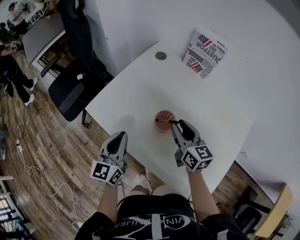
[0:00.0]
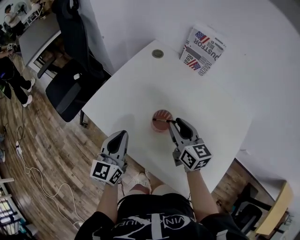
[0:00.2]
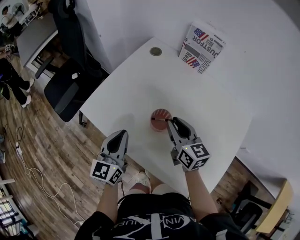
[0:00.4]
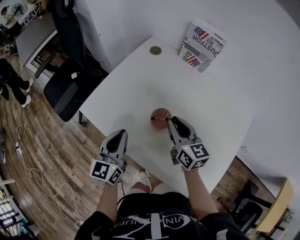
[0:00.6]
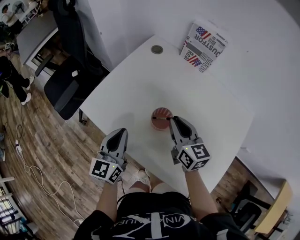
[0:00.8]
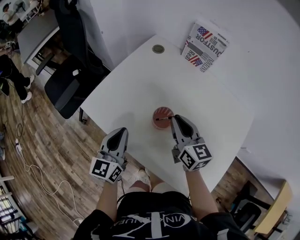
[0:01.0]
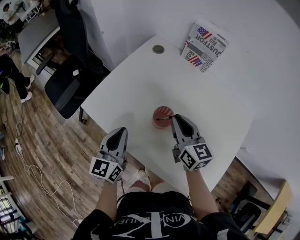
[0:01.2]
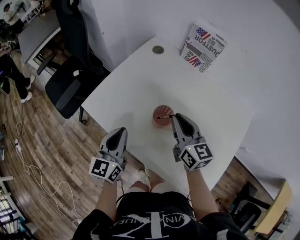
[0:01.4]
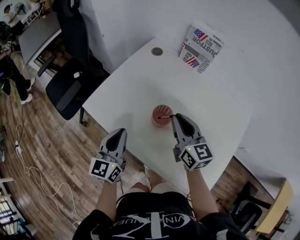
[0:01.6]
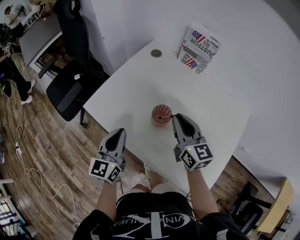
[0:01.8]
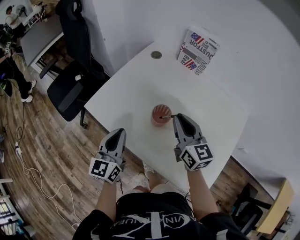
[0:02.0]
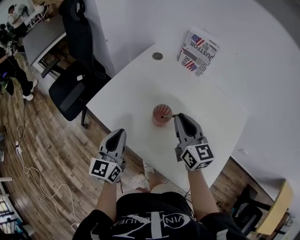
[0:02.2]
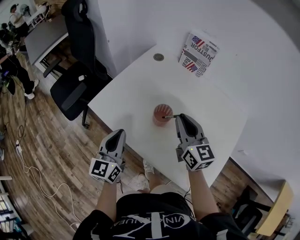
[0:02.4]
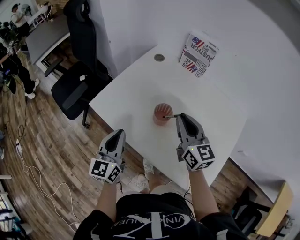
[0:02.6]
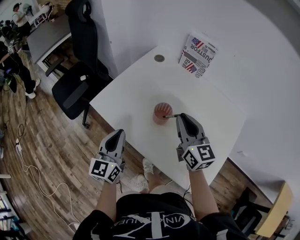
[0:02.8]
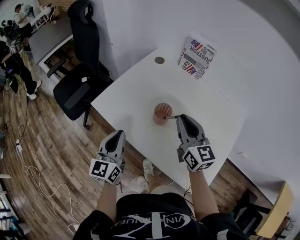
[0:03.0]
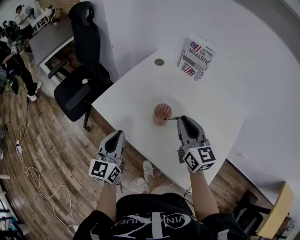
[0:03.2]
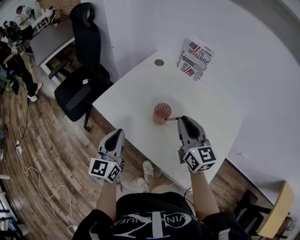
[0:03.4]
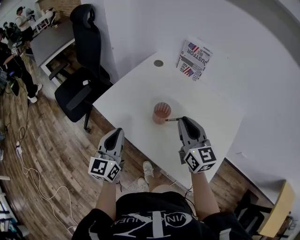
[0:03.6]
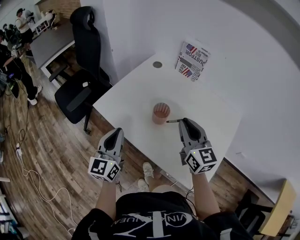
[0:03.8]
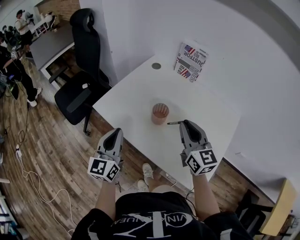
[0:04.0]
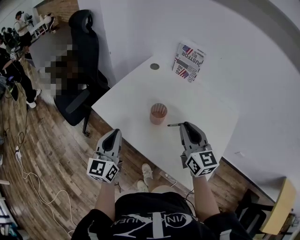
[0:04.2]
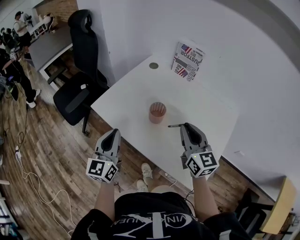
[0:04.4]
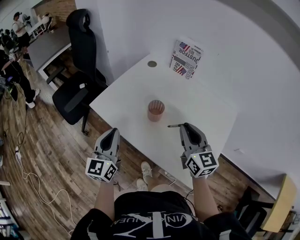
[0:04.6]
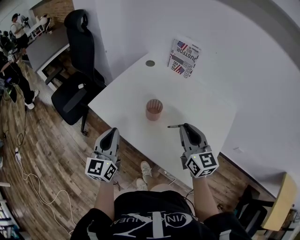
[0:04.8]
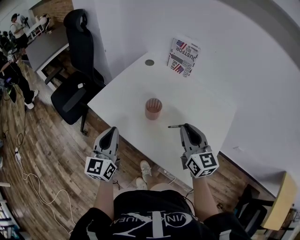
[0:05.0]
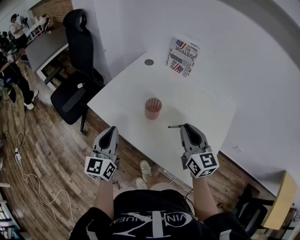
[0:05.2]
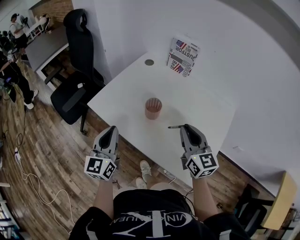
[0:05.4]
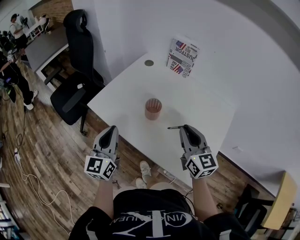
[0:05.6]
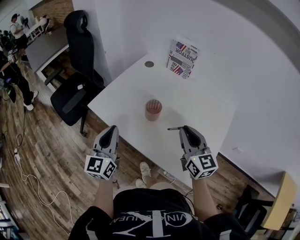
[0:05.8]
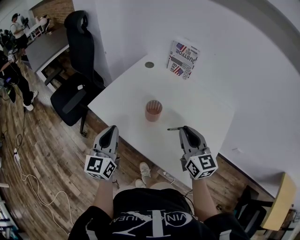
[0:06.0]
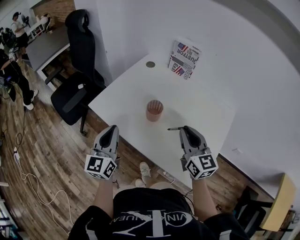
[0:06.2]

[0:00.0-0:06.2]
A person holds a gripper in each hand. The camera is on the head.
0:00.0 to 0:01.6: The right gripper closes.
0:01.6 to 0:03.2: The left gripper is displaced backward by roughly 5 cm. Meanwhile the right gripper travels upward and backward by some 10 cm.
0:03.2 to 0:04.6: The right gripper travels backward by about 5 cm.
0:04.6 to 0:06.2: The grippers make only small movements.

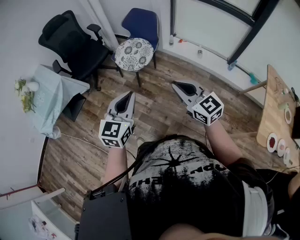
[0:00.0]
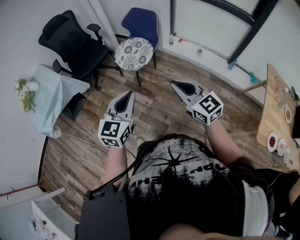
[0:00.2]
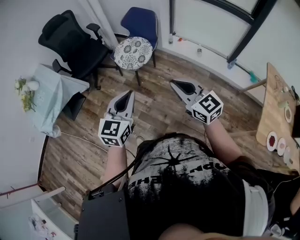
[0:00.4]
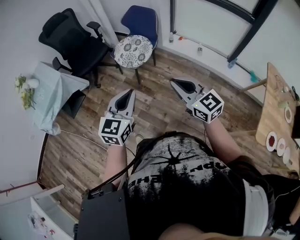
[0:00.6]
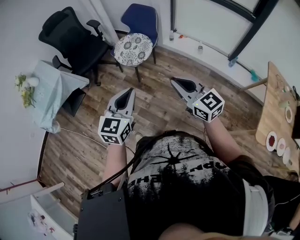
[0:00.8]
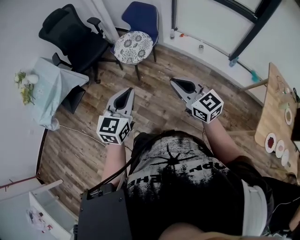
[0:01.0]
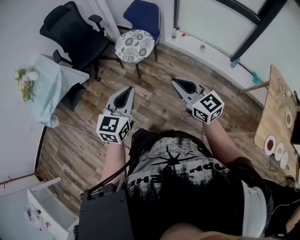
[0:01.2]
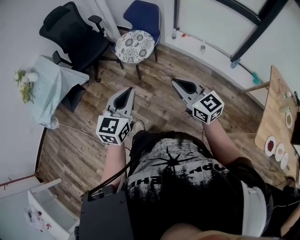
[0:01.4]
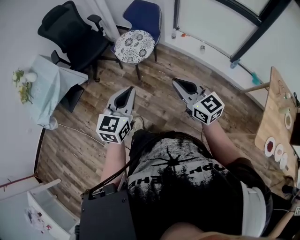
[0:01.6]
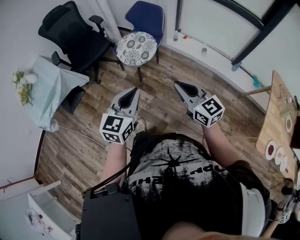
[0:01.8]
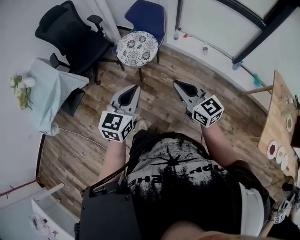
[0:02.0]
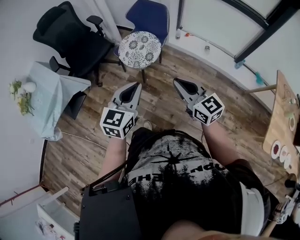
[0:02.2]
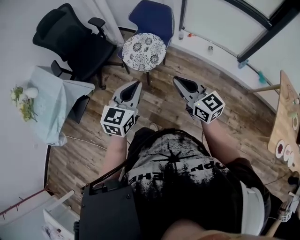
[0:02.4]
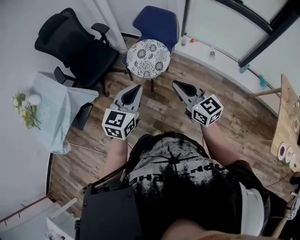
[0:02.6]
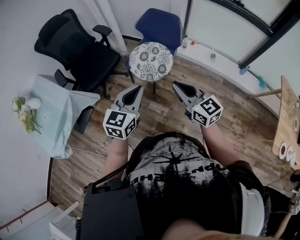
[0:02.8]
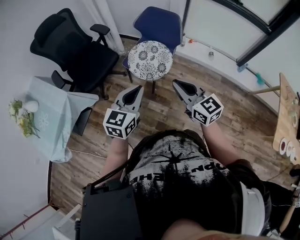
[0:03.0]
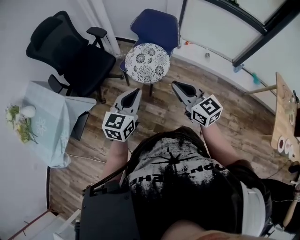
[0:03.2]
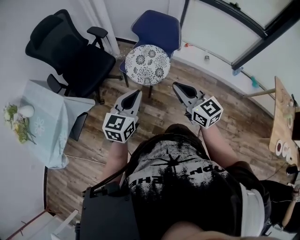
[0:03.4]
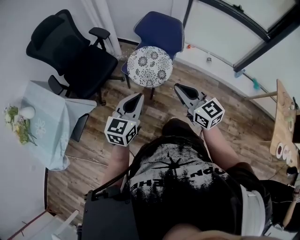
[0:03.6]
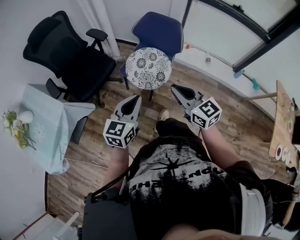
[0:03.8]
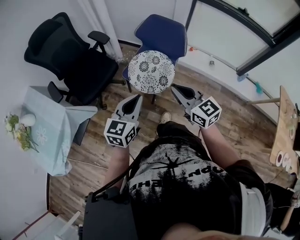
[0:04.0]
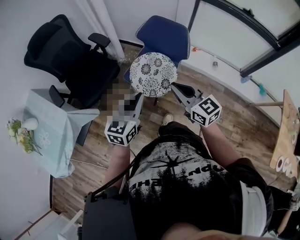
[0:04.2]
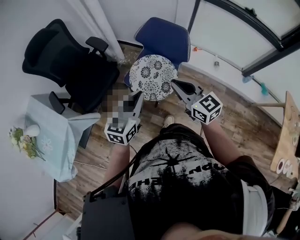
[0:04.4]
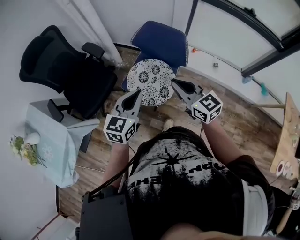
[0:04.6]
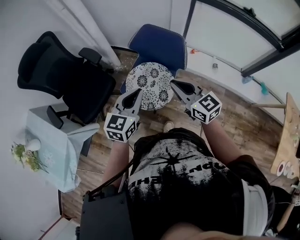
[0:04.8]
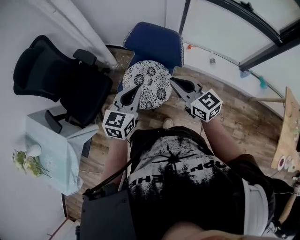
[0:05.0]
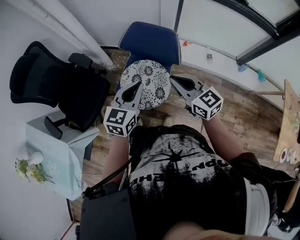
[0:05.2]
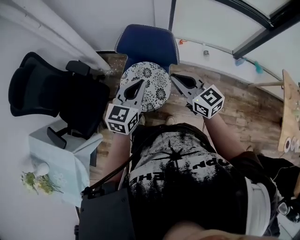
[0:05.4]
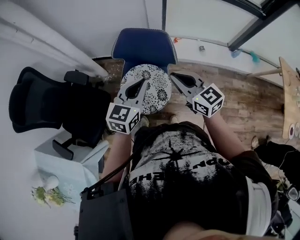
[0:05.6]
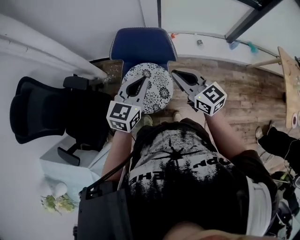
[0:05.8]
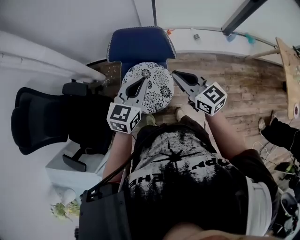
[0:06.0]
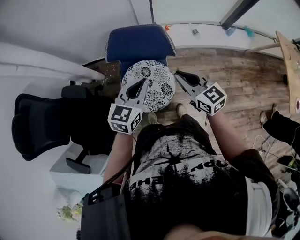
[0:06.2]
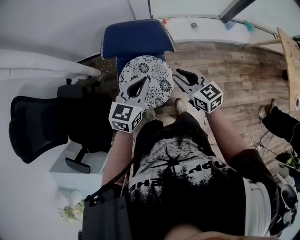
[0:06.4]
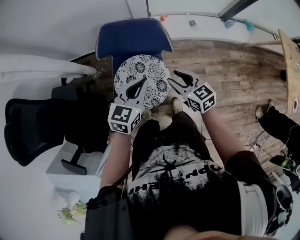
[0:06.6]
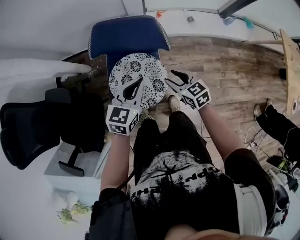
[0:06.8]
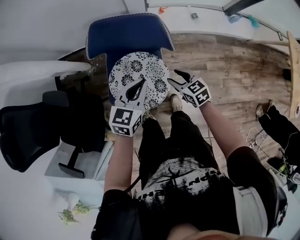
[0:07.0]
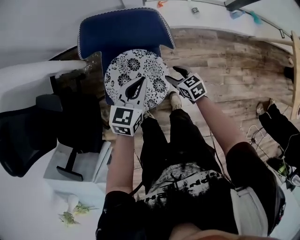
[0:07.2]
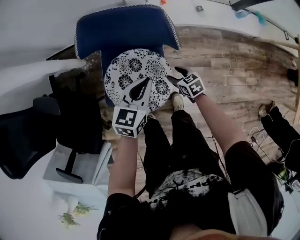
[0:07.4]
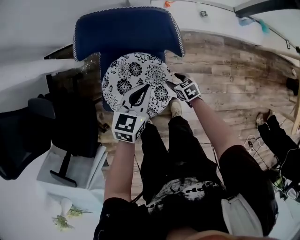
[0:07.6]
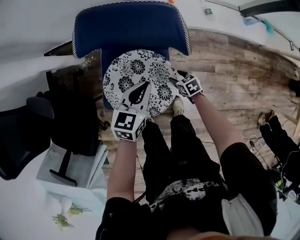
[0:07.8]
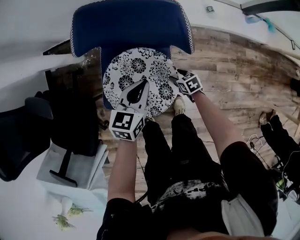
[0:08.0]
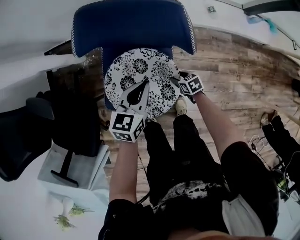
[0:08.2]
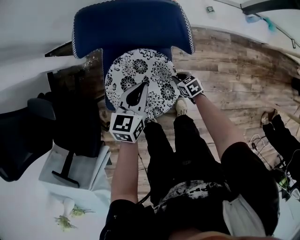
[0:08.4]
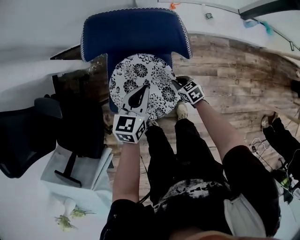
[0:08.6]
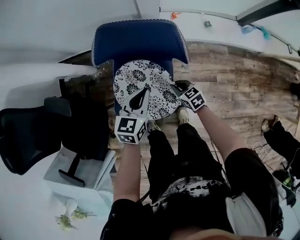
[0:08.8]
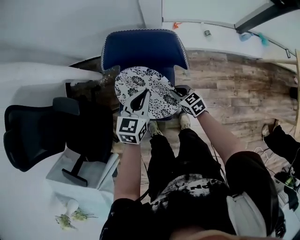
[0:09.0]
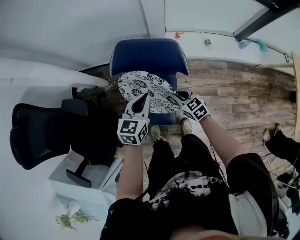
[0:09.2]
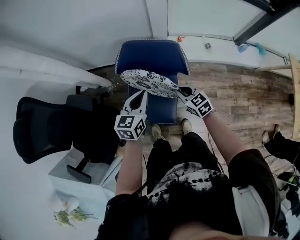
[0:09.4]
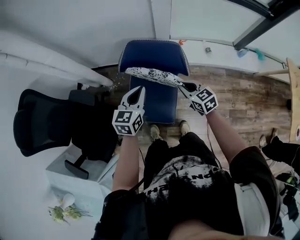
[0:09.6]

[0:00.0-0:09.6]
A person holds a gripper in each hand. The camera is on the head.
0:00.0 to 0:01.6: The grippers stay close to where they were, moving slightly.
0:01.6 to 0:03.2: The left gripper moves forward and to the left, roughly 30 cm. Meanwhile the right gripper moves to the left and forward, some 30 cm.
0:03.2 to 0:04.8: Both grippers move forward, some 25 cm.
0:04.8 to 0:06.4: The left gripper ends up about 15 cm from where it was, and swivels some 30 degrees, while the right gripper moves downward, some 10 cm, and swivels approximately 30 degrees.
0:06.4 to 0:08.0: The right gripper travels downward by some 50 cm, angles its fingers downward, by approximately 40 degrees, and opens up. Meanwhile the left gripper is displaced downward by approximately 25 cm.
0:08.0 to 0:09.6: The left gripper goes about 20 cm upward; the right gripper is displaced upward by some 40 cm, changes its angle by approximately 40 degrees, and closes its fingers.

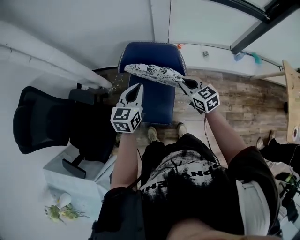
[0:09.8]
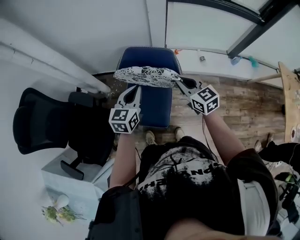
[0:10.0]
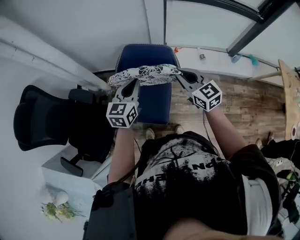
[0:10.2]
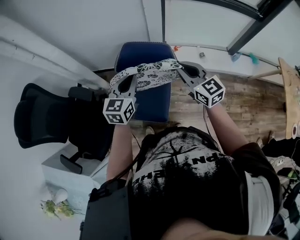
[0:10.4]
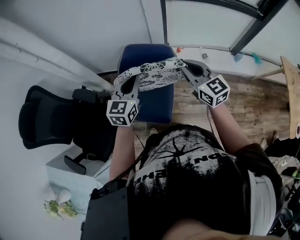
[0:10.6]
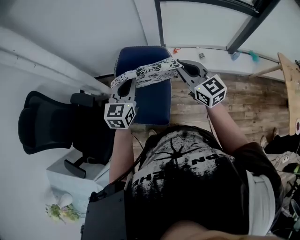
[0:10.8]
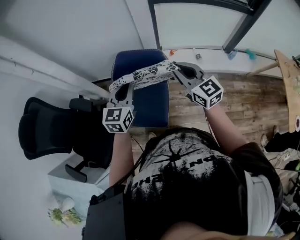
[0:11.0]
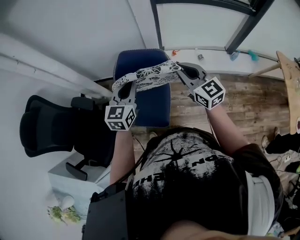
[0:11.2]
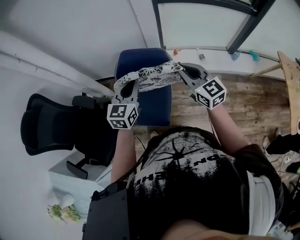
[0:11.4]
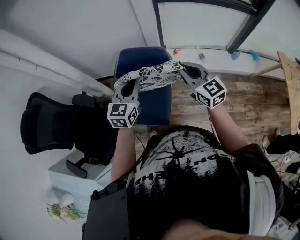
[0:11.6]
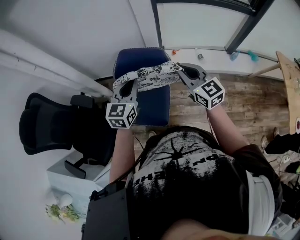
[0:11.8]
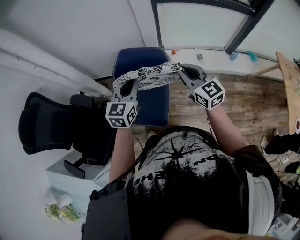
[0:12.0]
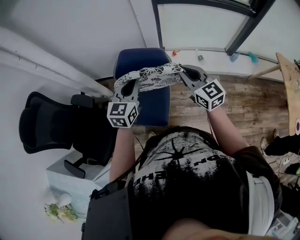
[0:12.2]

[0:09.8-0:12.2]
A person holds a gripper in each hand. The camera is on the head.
0:09.8 to 0:11.0: The right gripper is displaced upward by about 15 cm, and swivels about 20 degrees, while the left gripper heads upward, covering roughly 5 cm.
0:11.0 to 0:12.2: The grippers stay close to where they were, moving slightly.

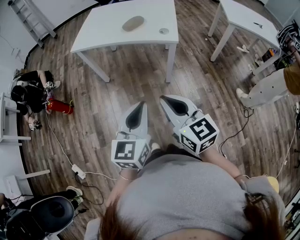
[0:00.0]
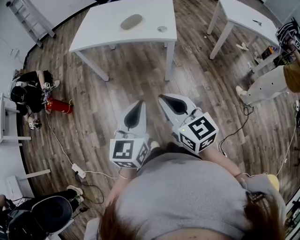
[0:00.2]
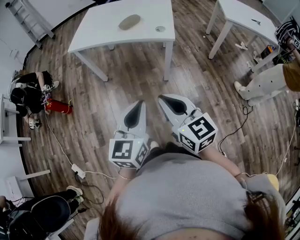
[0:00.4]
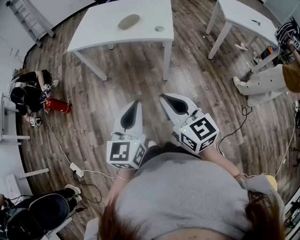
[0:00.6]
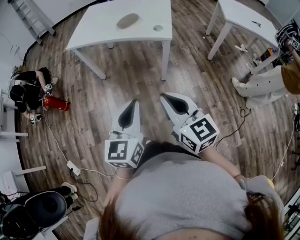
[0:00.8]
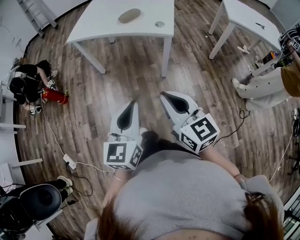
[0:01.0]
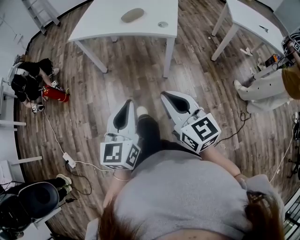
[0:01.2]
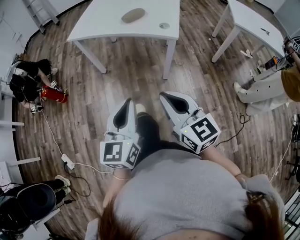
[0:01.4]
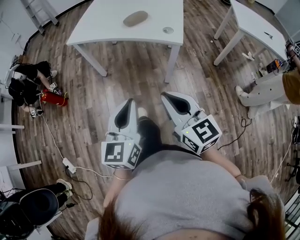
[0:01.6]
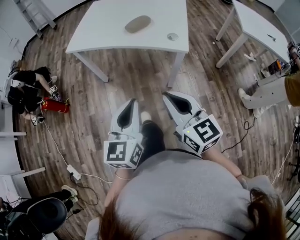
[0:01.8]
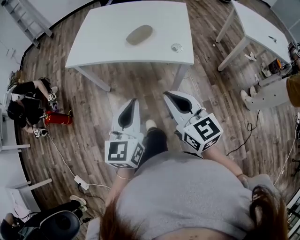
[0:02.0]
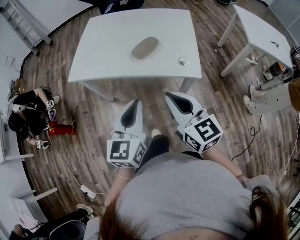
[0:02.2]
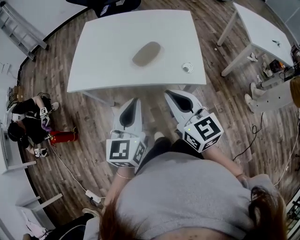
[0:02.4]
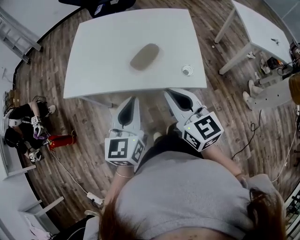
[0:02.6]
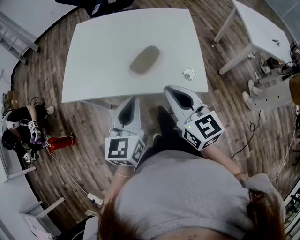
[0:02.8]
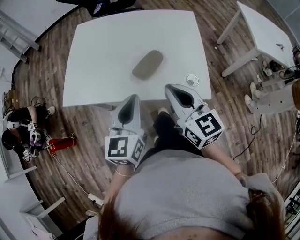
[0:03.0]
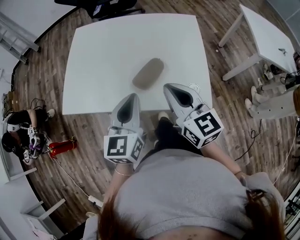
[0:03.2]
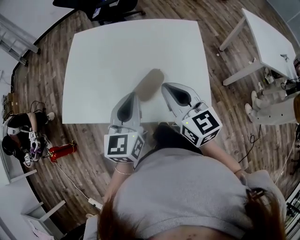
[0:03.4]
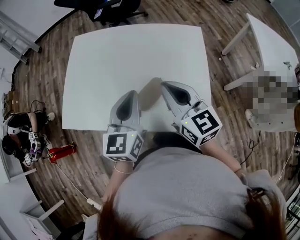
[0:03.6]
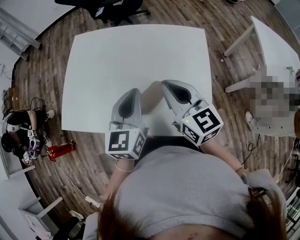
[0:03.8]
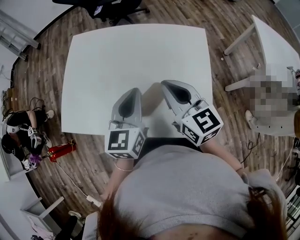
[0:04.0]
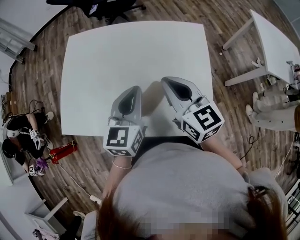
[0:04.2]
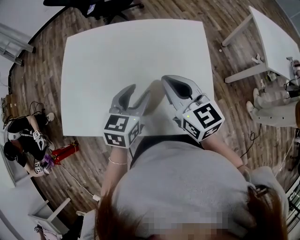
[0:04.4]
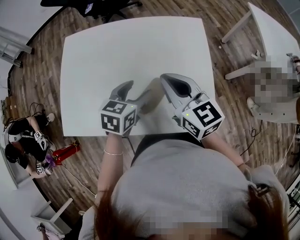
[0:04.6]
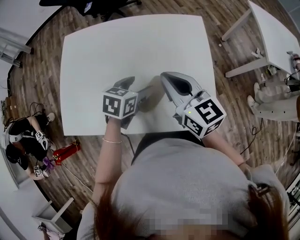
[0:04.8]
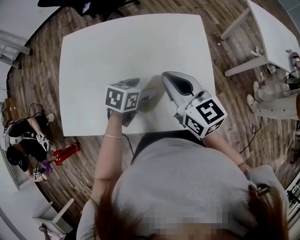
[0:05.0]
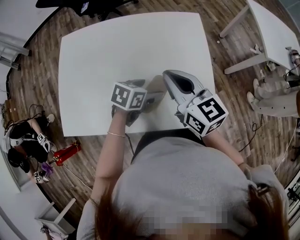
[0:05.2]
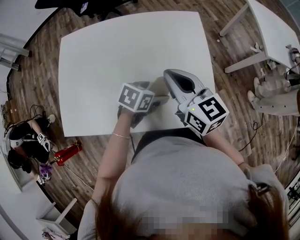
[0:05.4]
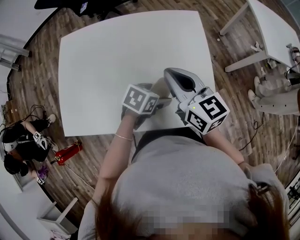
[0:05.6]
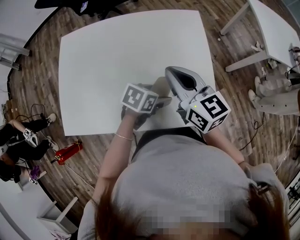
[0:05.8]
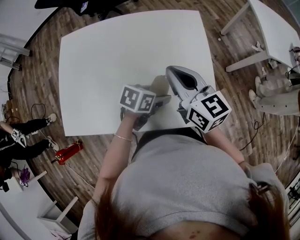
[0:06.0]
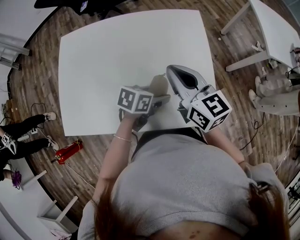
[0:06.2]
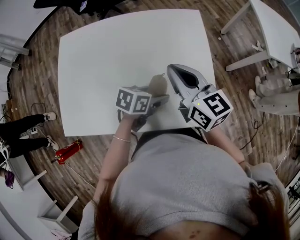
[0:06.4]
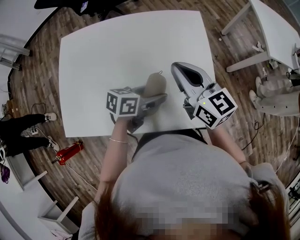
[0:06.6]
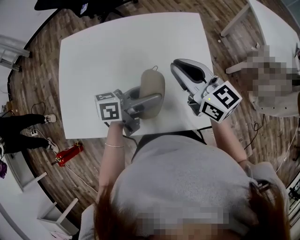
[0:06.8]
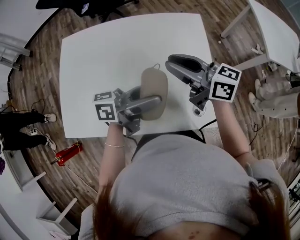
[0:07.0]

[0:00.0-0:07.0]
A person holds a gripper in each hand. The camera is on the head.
0:00.0 to 0:01.4: The grippers stay close to where they were, moving slightly.
0:01.4 to 0:02.8: The grippers both shift forward by roughly 40 cm.
0:02.8 to 0:04.2: The grippers both shift forward by about 20 cm.
0:04.2 to 0:05.6: The left gripper goes roughly 15 cm downward, tips its fingers downward by some 30 degrees, and opens up.
0:05.6 to 0:07.0: The right gripper changes its angle by roughly 30 degrees. Meanwhile the left gripper is displaced upward by approximately 15 cm, and points its fingers approximately 60 degrees further upward.
